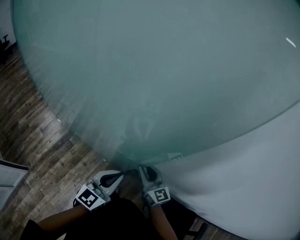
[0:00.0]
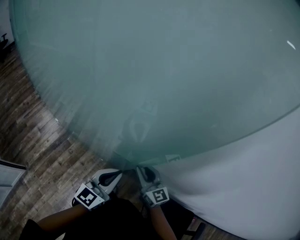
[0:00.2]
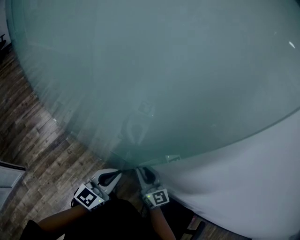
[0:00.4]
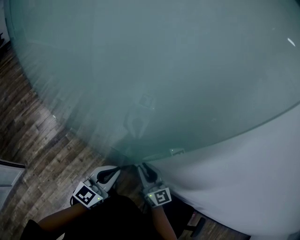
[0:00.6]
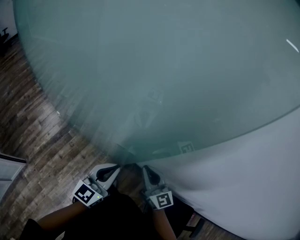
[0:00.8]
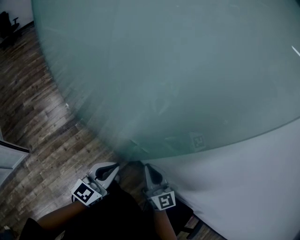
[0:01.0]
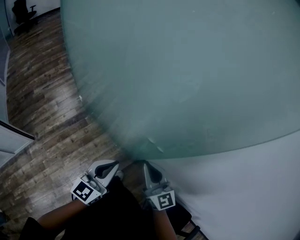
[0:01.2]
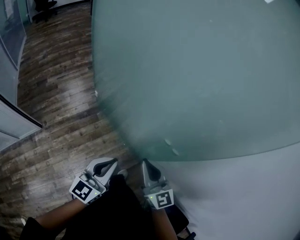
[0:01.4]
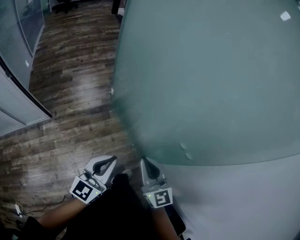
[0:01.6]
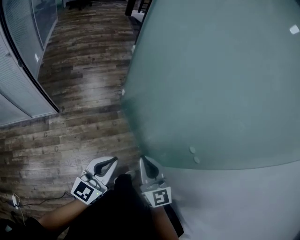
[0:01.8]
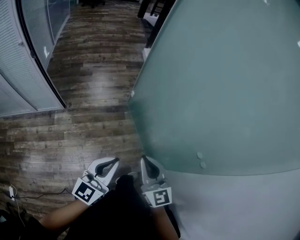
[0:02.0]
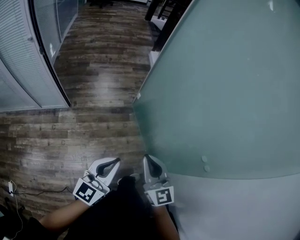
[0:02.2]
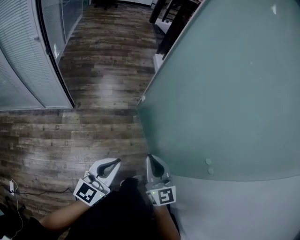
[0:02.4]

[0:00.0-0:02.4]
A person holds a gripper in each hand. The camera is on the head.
0:00.0 to 0:01.2: The left gripper heads to the left and backward, covering about 10 cm. Meanwhile the right gripper is displaced upward, to the left and backward by approximately 20 cm, and closes its fingers.
0:01.2 to 0:02.4: The left gripper changes place by about 25 cm, and swivels some 30 degrees. The right gripper changes place by about 25 cm, and rotates about 20 degrees.

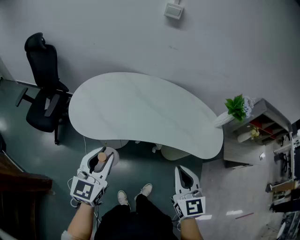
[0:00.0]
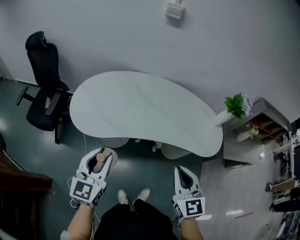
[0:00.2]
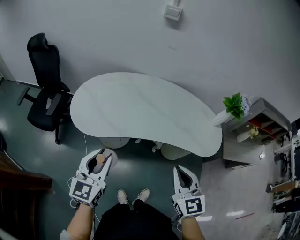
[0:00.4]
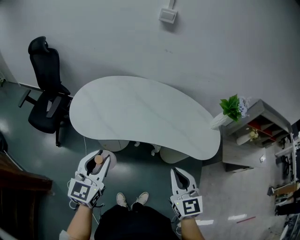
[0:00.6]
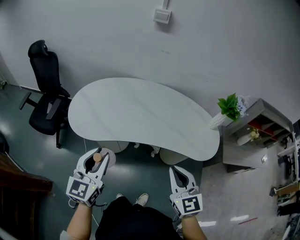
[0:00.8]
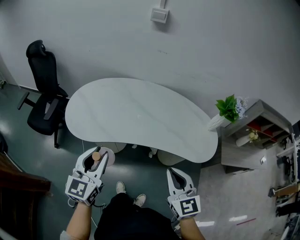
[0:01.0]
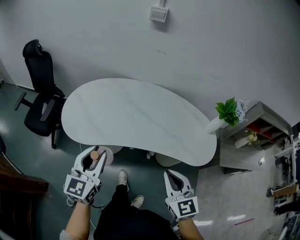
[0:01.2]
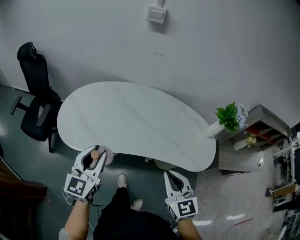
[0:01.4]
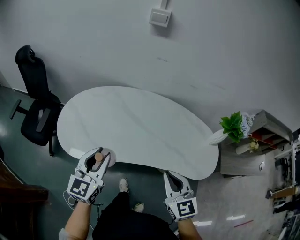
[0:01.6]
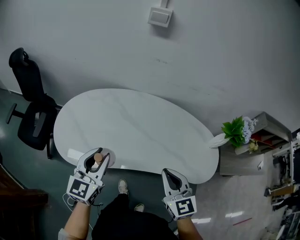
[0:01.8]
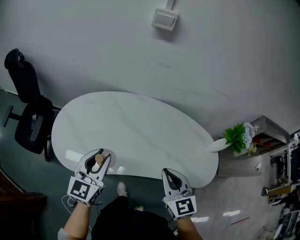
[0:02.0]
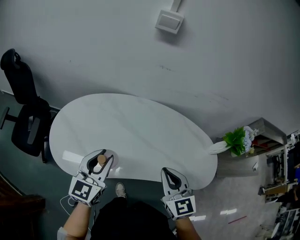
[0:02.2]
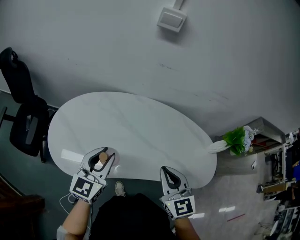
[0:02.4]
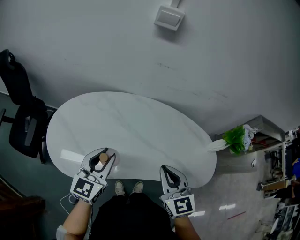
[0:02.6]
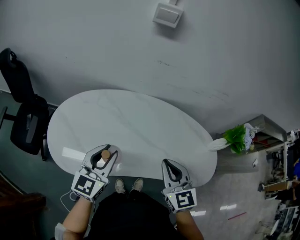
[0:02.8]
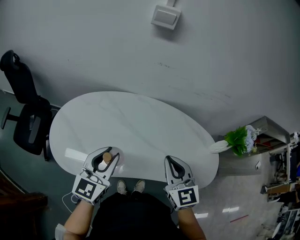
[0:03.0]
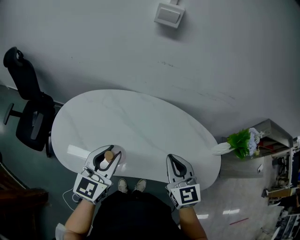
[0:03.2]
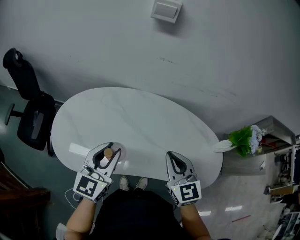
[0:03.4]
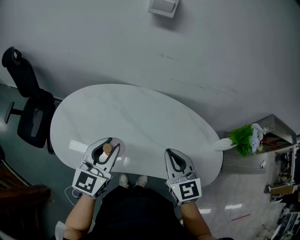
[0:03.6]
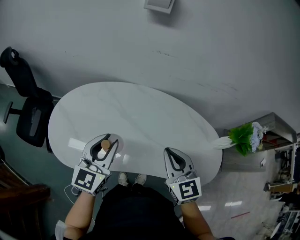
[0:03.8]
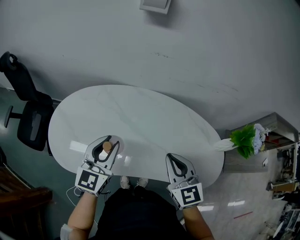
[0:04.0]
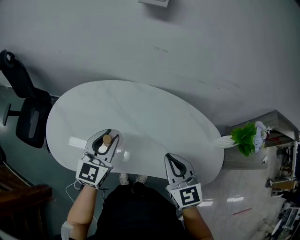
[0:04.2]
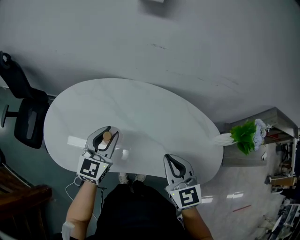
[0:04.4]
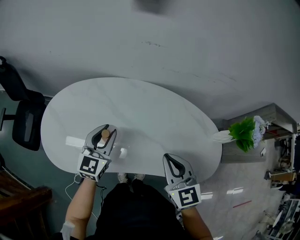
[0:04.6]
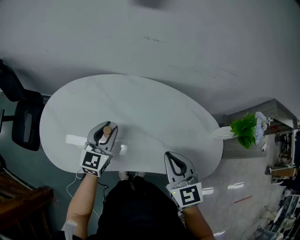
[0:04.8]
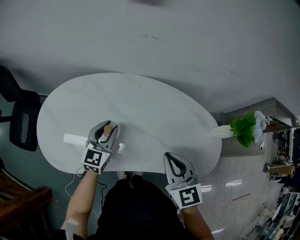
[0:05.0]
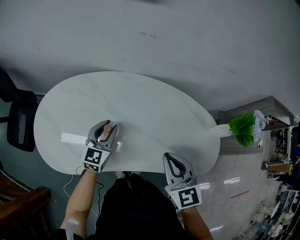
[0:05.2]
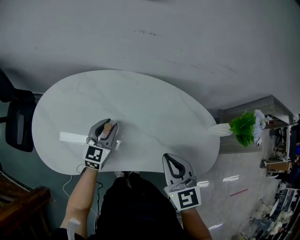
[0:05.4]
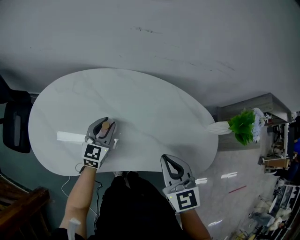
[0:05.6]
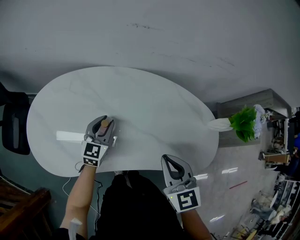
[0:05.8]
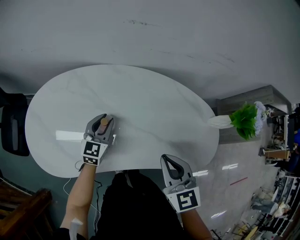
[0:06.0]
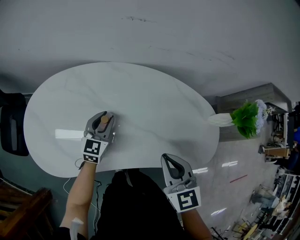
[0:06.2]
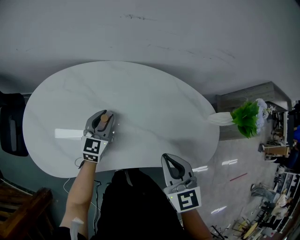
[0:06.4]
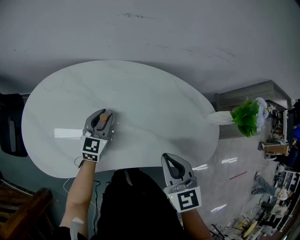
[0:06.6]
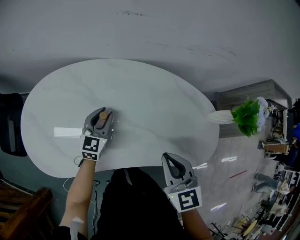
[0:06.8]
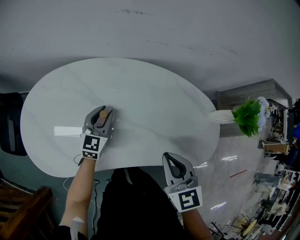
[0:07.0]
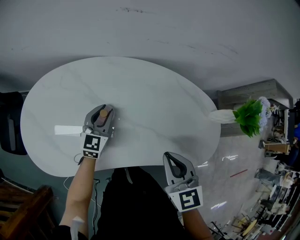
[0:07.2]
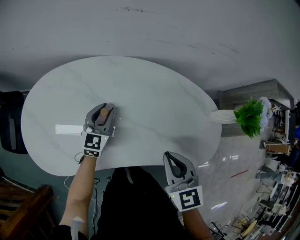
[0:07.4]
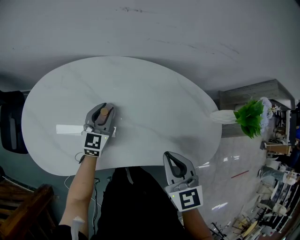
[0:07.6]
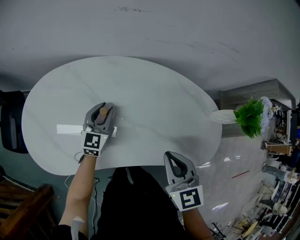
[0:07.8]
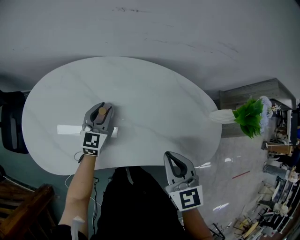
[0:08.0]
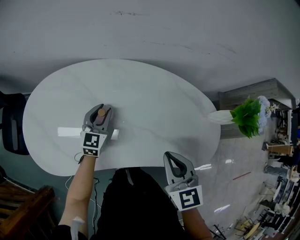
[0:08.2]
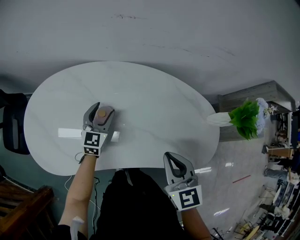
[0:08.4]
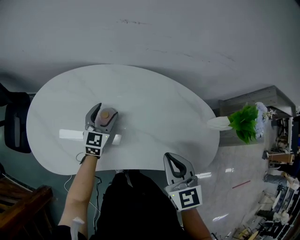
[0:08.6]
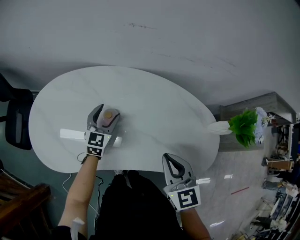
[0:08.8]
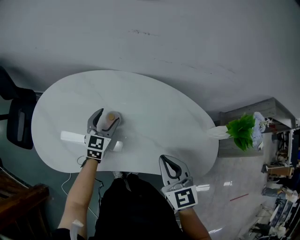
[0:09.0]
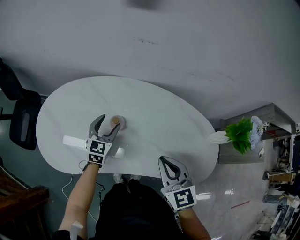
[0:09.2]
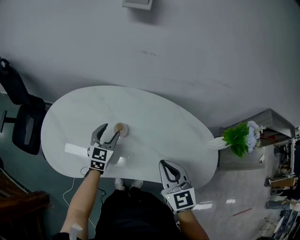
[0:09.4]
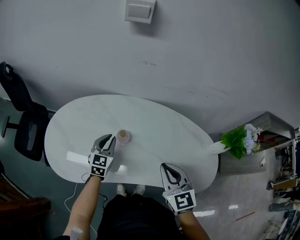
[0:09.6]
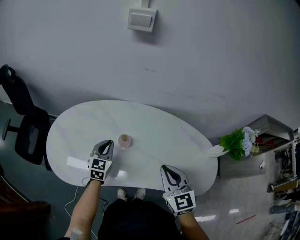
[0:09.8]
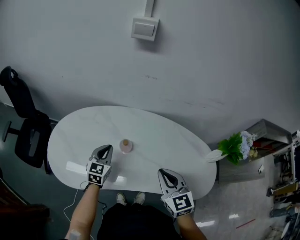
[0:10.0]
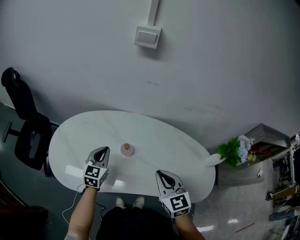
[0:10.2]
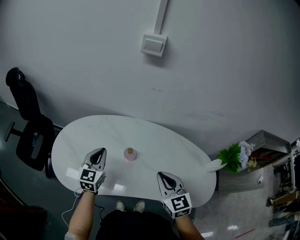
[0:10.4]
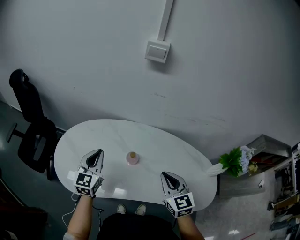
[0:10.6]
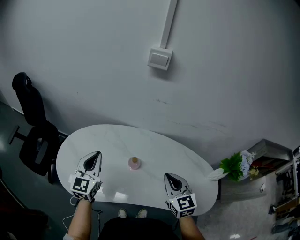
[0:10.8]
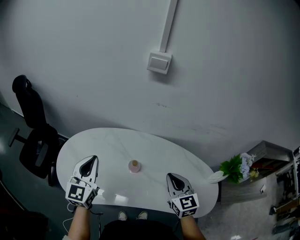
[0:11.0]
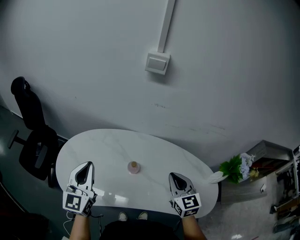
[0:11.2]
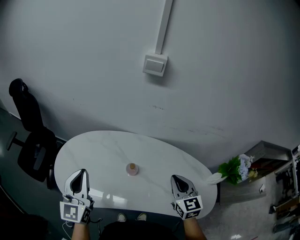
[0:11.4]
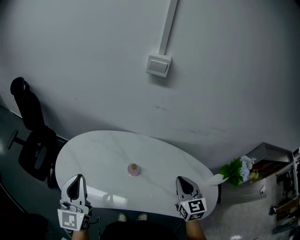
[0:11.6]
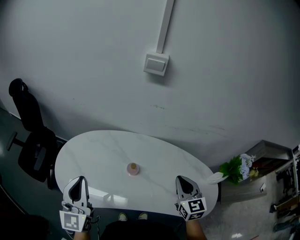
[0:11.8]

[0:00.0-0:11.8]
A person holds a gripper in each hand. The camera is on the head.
0:00.0 to 0:01.4: The right gripper moves forward, about 5 cm, while the left gripper moves forward and to the right, about 10 cm.
0:01.4 to 0:03.0: Both grippers travel together forward, roughly 20 cm.
0:03.0 to 0:04.4: The right gripper changes place by some 5 cm. Meanwhile the left gripper travels forward and downward by roughly 10 cm.
0:04.4 to 0:06.0: The left gripper is displaced downward and forward by approximately 15 cm.
0:06.0 to 0:07.4: The grippers stay close to where they were, moving slightly.
0:07.4 to 0:08.8: The left gripper opens its fingers.
0:08.8 to 0:10.4: The right gripper travels to the left by about 5 cm. The left gripper goes approximately 20 cm upward, to the left and backward, and closes.
0:10.4 to 0:11.8: The left gripper heads upward and backward, covering roughly 20 cm, and rotates approximately 20 degrees. Meanwhile the right gripper moves to the right, approximately 5 cm.

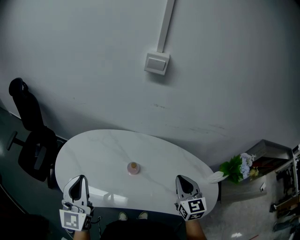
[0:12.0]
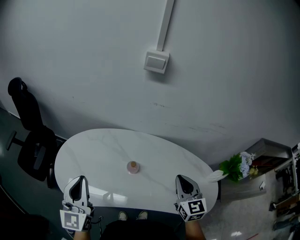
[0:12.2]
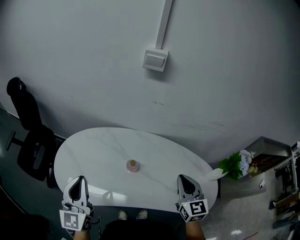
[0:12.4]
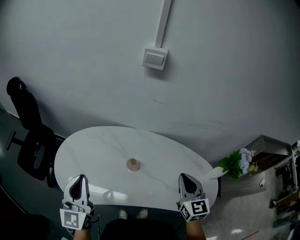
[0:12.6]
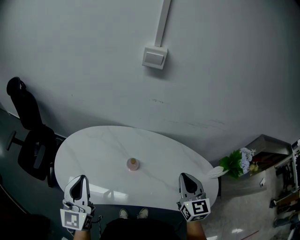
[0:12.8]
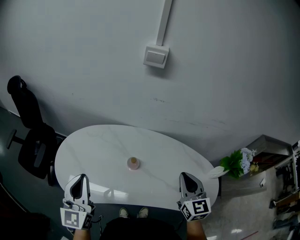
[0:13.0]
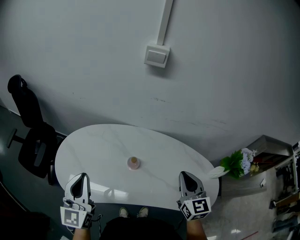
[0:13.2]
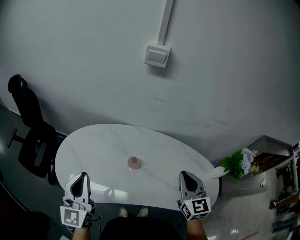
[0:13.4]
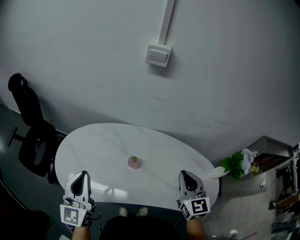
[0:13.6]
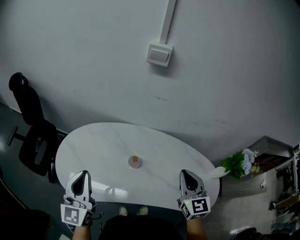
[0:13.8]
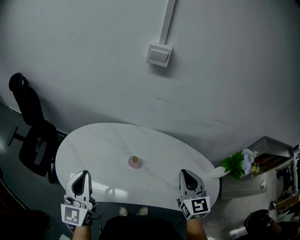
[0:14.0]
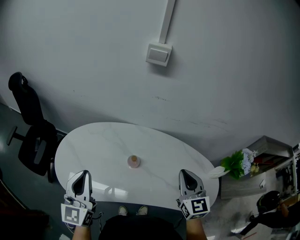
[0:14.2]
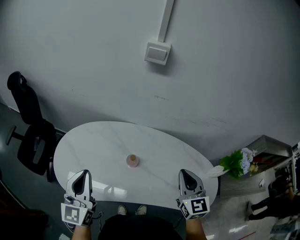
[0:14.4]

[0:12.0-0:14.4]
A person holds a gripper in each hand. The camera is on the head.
0:12.0 to 0:14.4: The grippers stay close to where they were, moving slightly.

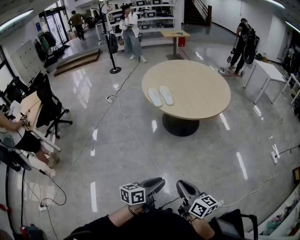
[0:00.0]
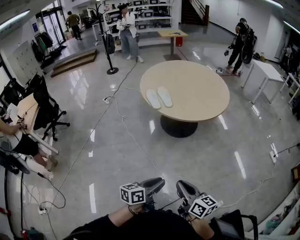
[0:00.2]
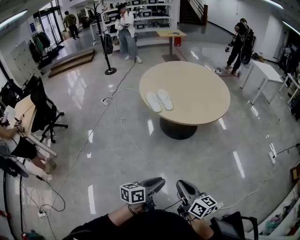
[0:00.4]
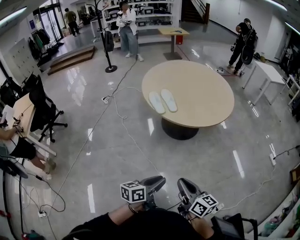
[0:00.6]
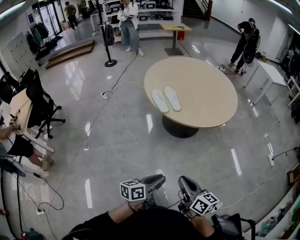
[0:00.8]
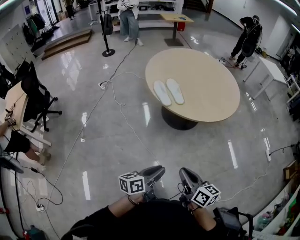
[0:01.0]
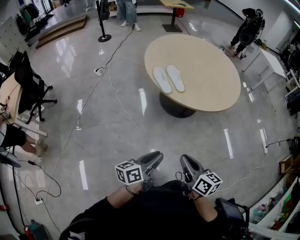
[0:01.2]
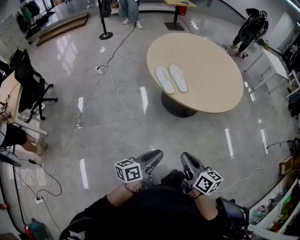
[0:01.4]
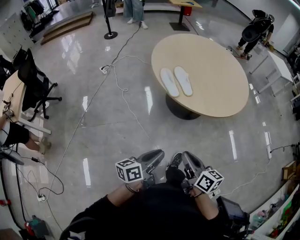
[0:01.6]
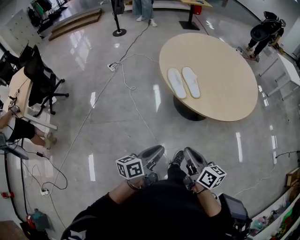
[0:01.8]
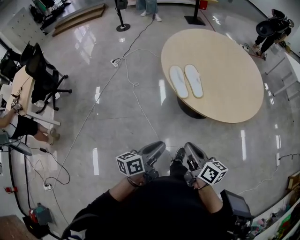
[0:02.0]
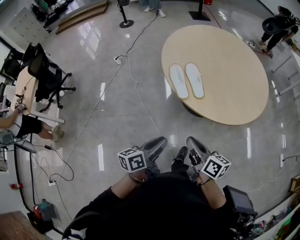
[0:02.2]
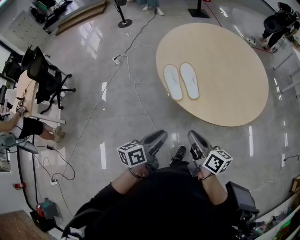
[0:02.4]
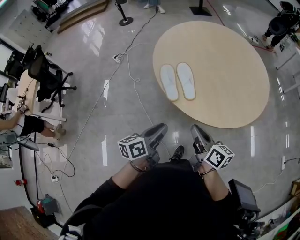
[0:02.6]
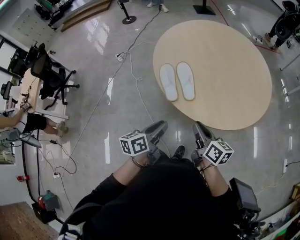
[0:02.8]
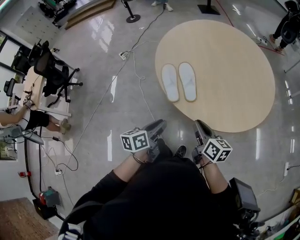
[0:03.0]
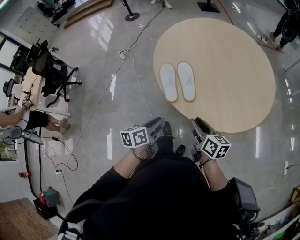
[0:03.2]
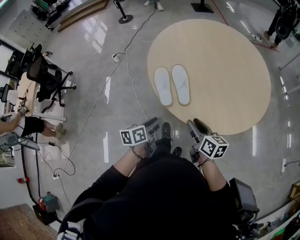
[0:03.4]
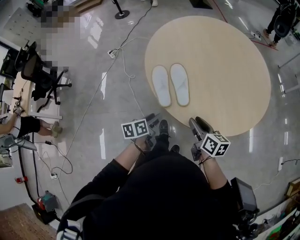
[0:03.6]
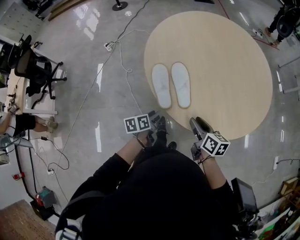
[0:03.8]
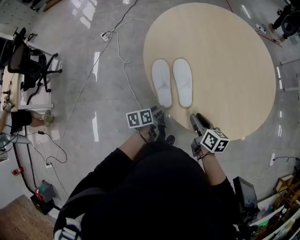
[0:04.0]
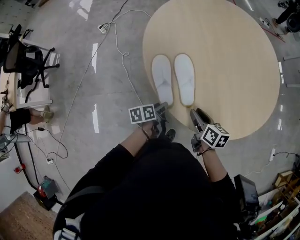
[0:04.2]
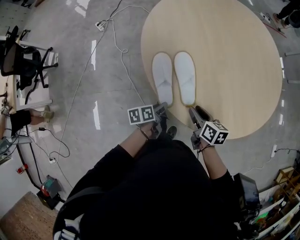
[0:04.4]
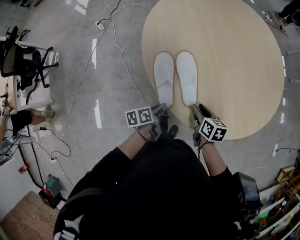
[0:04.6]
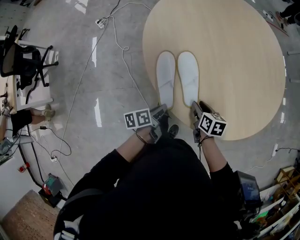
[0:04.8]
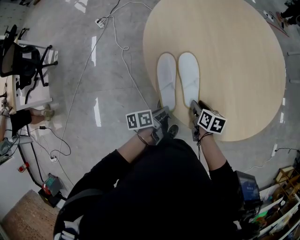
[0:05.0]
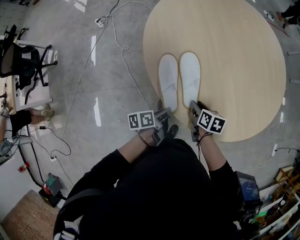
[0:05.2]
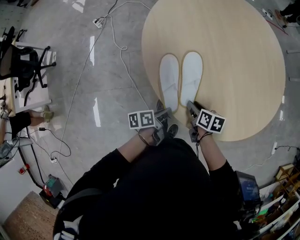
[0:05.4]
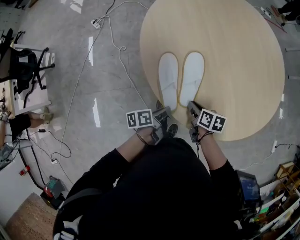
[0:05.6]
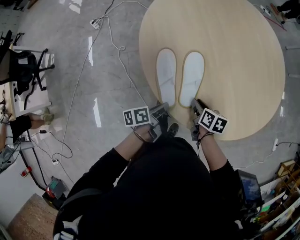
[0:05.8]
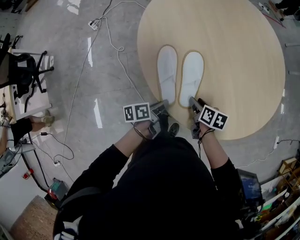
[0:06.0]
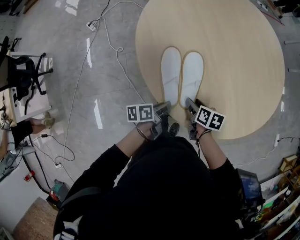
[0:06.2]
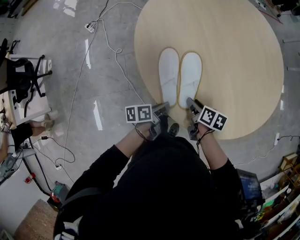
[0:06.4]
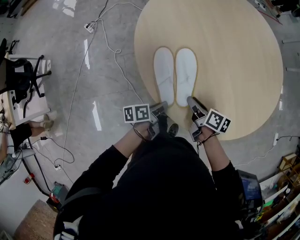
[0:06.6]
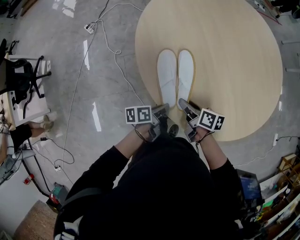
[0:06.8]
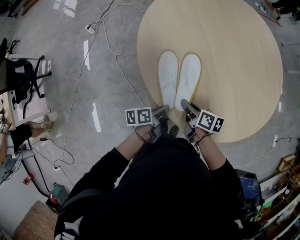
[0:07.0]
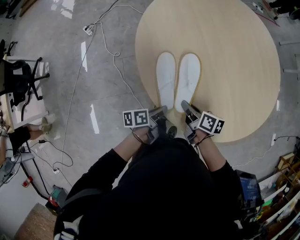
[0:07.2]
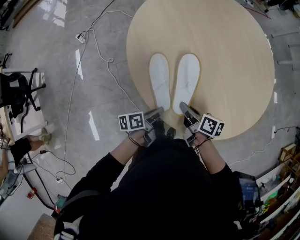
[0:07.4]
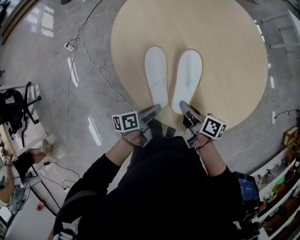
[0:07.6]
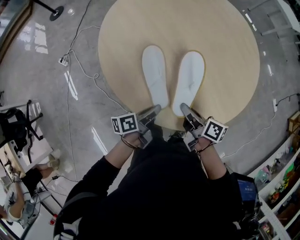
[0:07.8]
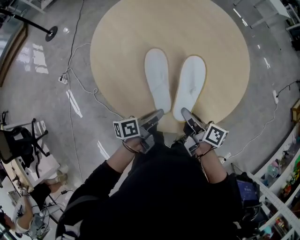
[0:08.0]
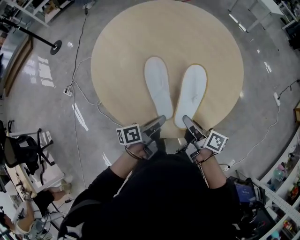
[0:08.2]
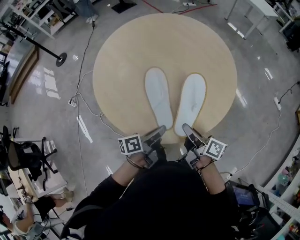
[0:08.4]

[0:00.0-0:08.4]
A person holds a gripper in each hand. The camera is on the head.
0:00.0 to 0:01.4: The right gripper moves forward and to the left, roughly 30 cm, while the left gripper heads to the left and forward, covering about 30 cm.
0:01.4 to 0:02.8: The right gripper shifts approximately 35 cm forward and to the right. Meanwhile the left gripper shifts some 30 cm forward, and rotates approximately 20 degrees.
0:02.8 to 0:04.2: The left gripper heads downward and forward, covering approximately 30 cm, swivels some 30 degrees, and opens up. Meanwhile the right gripper is displaced forward and downward by some 25 cm, turns by about 20 degrees, and opens up.
0:04.2 to 0:05.6: The right gripper moves downward and forward, about 10 cm, while the left gripper closes its fingers.
0:05.6 to 0:07.0: The right gripper travels to the left by about 5 cm, and opens, then closes again.
0:07.0 to 0:08.4: Both grippers travel together to the right and upward, some 30 cm. The right gripper rotates some 40 degrees, while the left gripper changes its angle by roughly 30 degrees.
